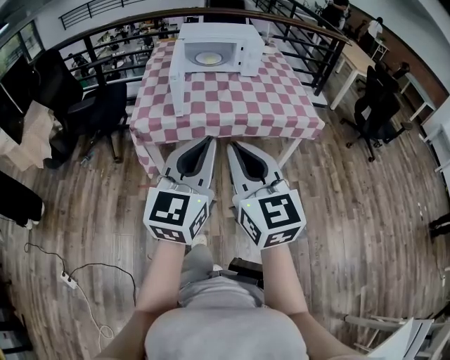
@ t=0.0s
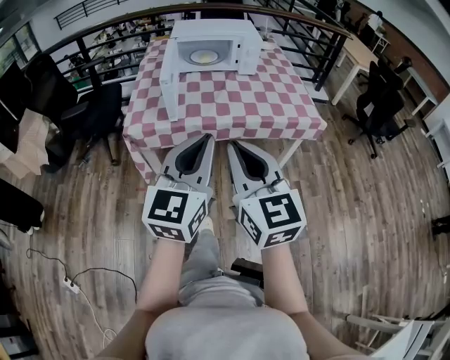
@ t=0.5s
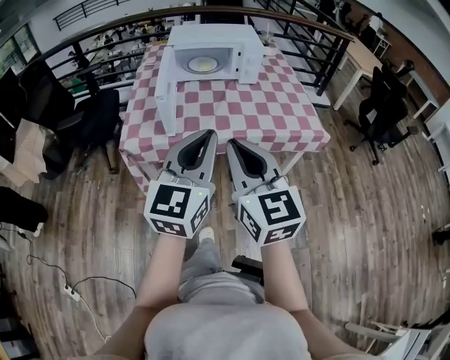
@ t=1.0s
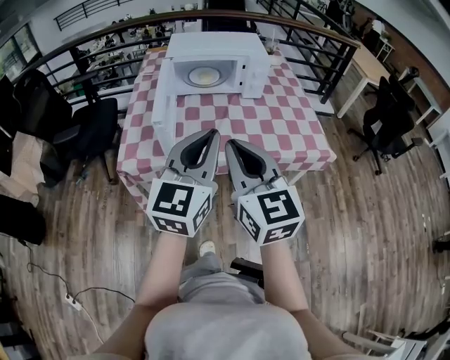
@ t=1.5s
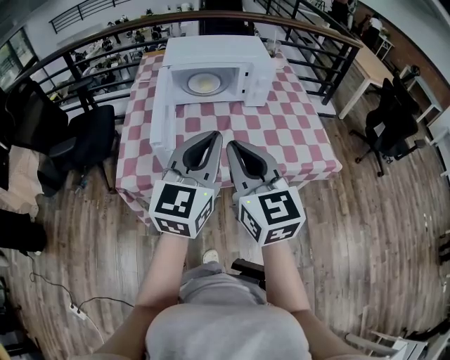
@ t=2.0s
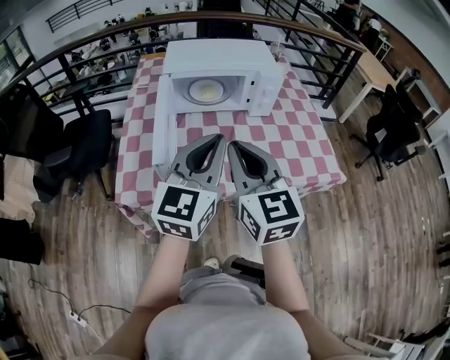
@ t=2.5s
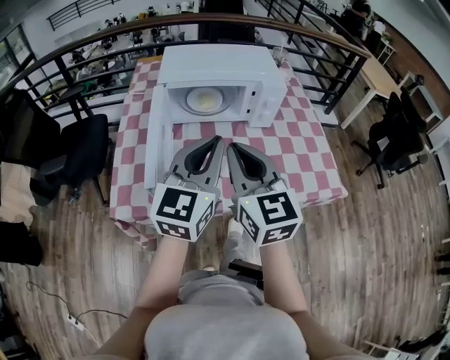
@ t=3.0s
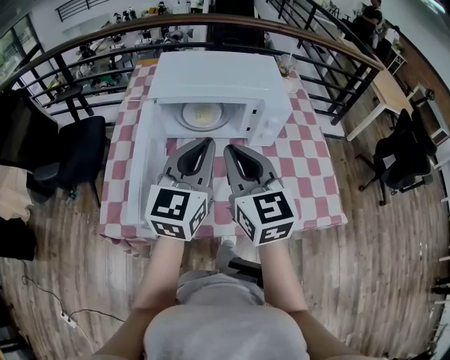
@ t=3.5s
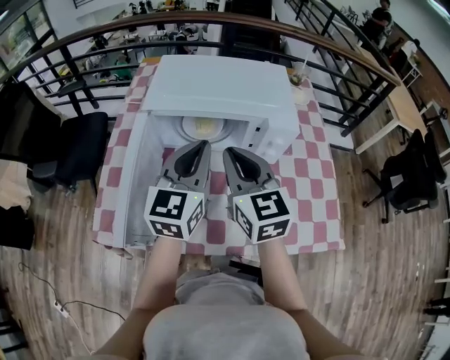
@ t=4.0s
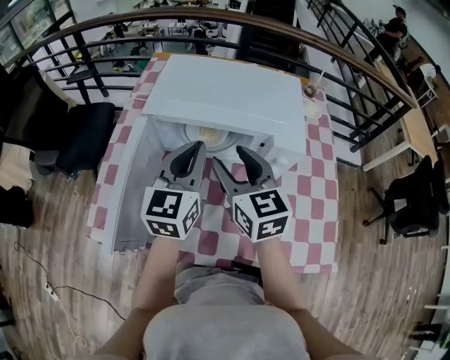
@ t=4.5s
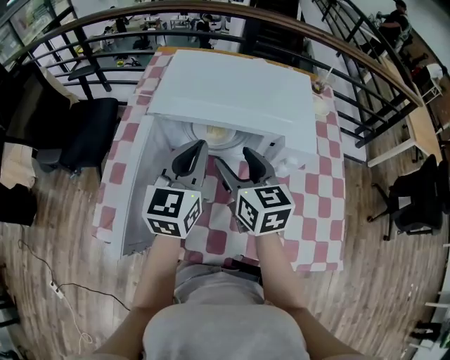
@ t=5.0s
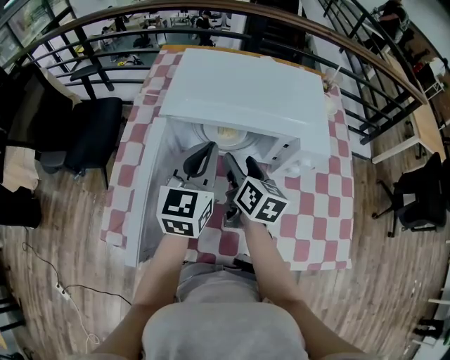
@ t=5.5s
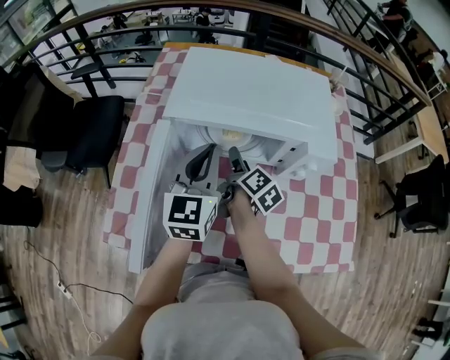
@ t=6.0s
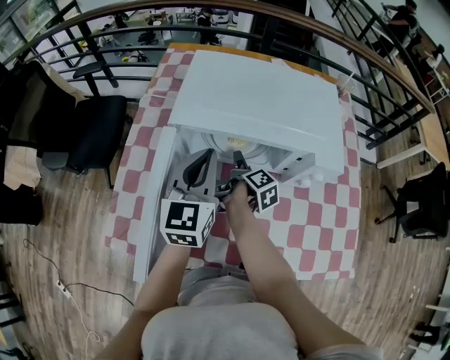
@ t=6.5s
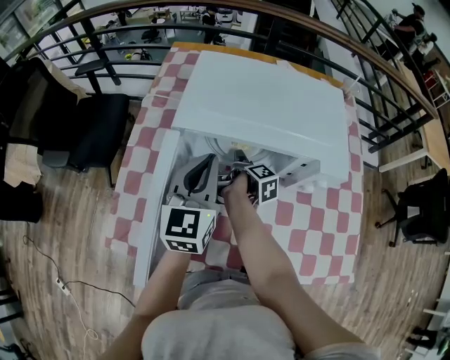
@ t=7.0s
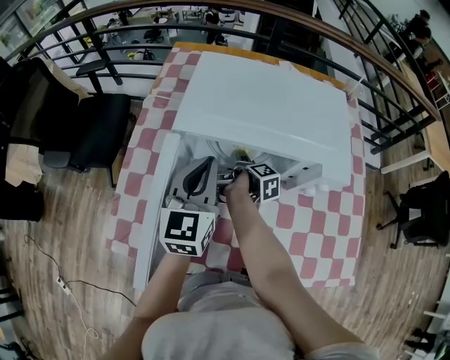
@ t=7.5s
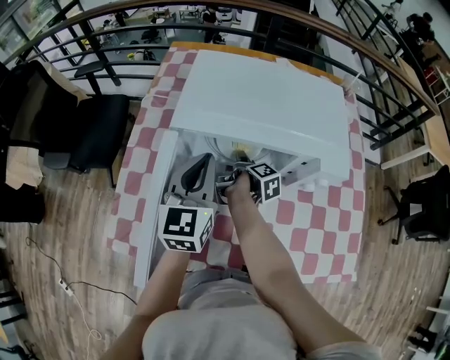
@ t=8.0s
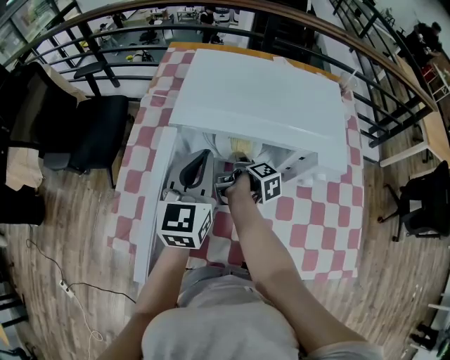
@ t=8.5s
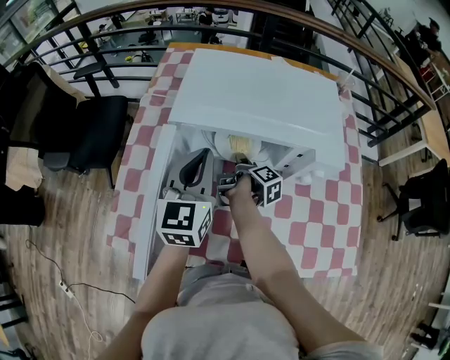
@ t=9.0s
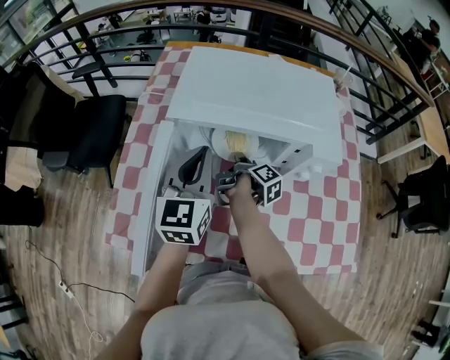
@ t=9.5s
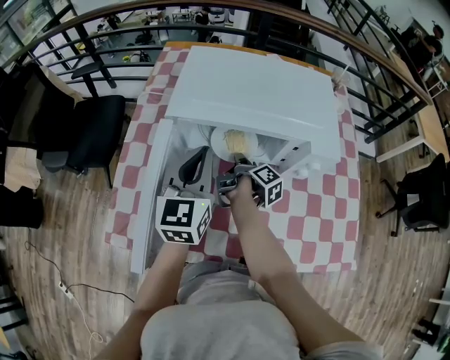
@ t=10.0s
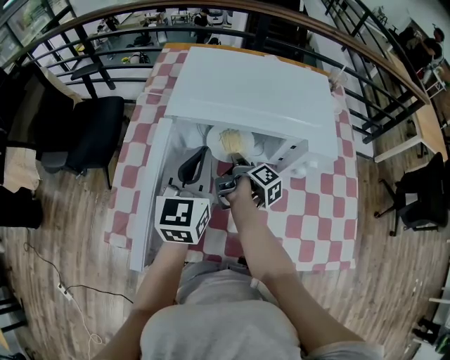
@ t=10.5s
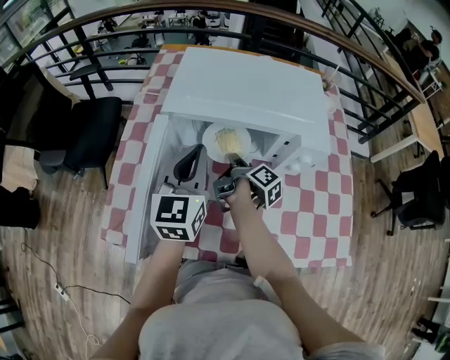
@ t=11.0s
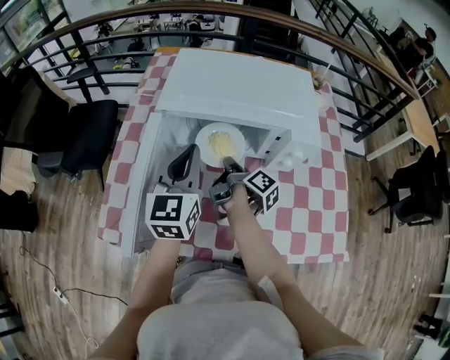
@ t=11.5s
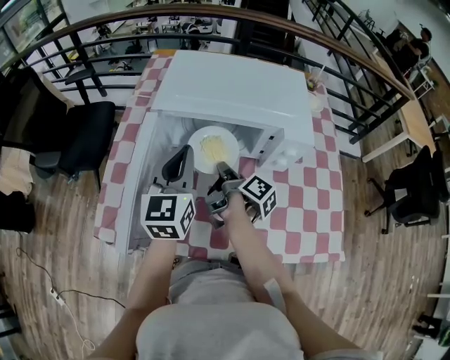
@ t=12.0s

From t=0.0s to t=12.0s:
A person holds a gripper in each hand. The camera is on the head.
From t=0.0s to t=2.0s: Both grippers move forward, approximately 35 cm.
From t=2.0s to t=4.0s: The two grippers go roughly 30 cm forward.
From t=4.0s to t=6.0s: The right gripper is displaced downward and forward by approximately 25 cm, rolls clockwise, seen from behind, by some 70 degrees, and opens up; the left gripper goes about 10 cm forward, to the left and downward.
From t=6.0s to t=8.0s: The right gripper shifts some 10 cm downward, and swivels approximately 30 degrees.
From t=8.0s to t=10.0s: The right gripper closes its fingers.
From t=10.0s to t=12.0s: The right gripper moves backward and upward, roughly 10 cm.

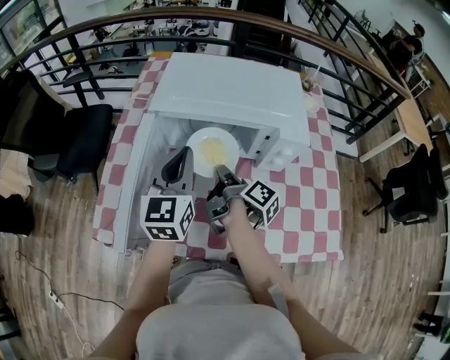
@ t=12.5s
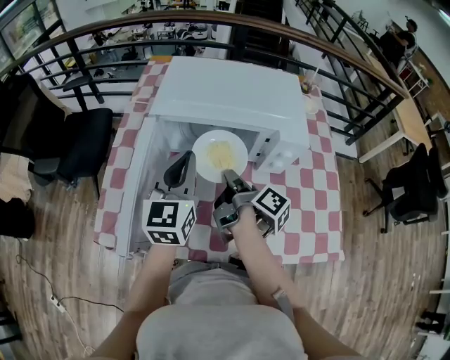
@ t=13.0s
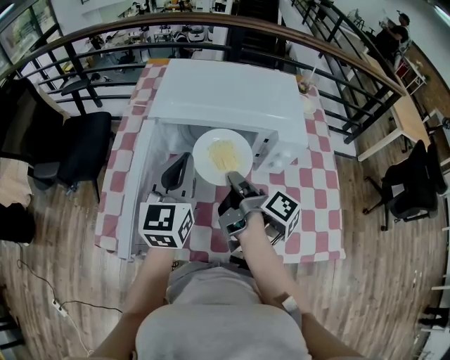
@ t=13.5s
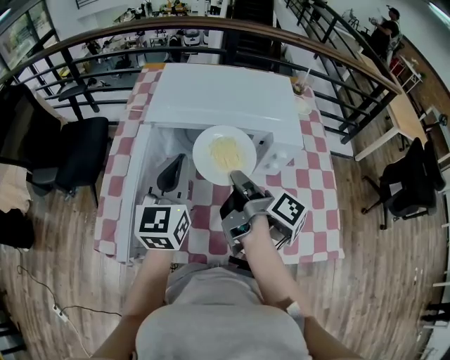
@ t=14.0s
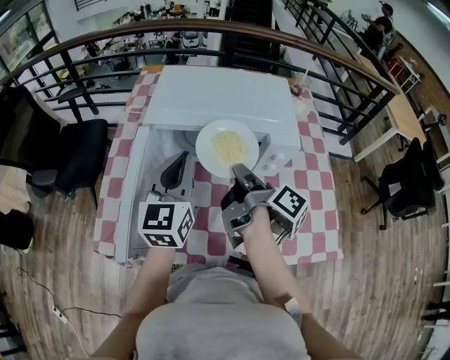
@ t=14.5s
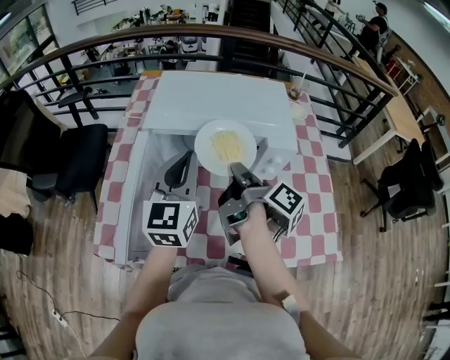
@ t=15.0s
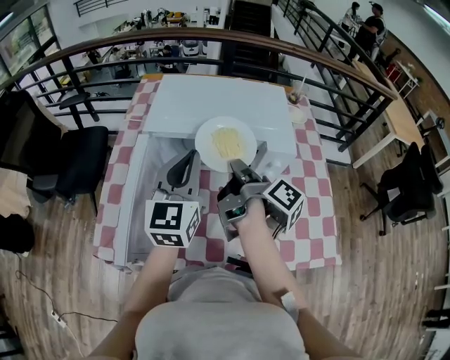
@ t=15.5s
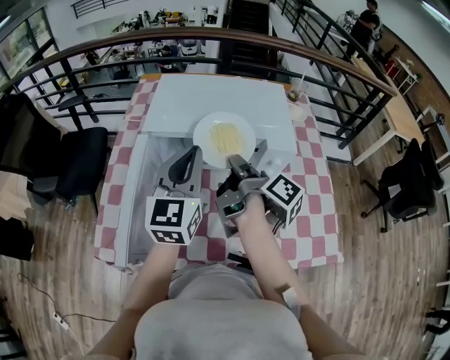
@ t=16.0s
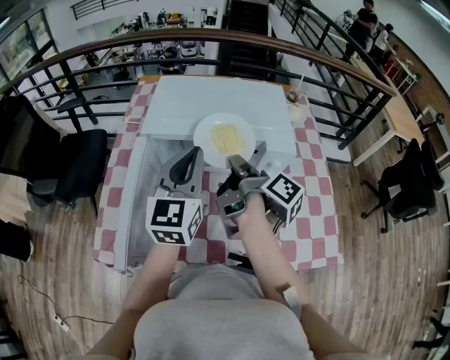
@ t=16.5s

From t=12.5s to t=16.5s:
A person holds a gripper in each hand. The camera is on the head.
From t=12.5s to t=14.5s: The right gripper moves upward, roughly 10 cm.
From t=14.5s to t=16.5s: The grippers stay close to where they were, moving slightly.

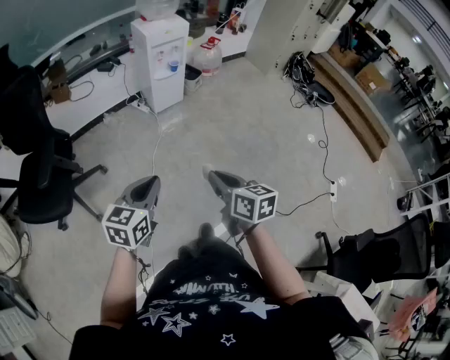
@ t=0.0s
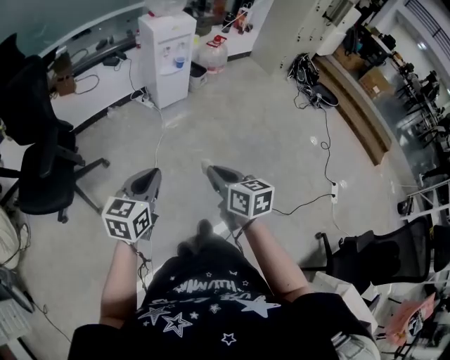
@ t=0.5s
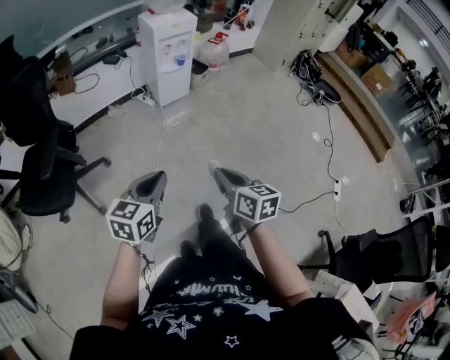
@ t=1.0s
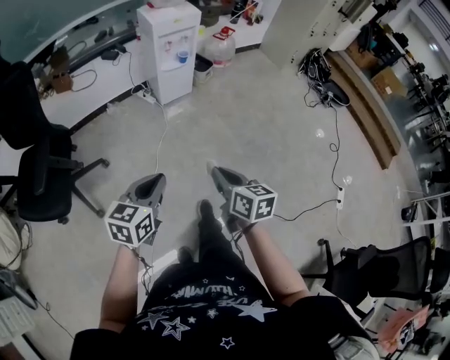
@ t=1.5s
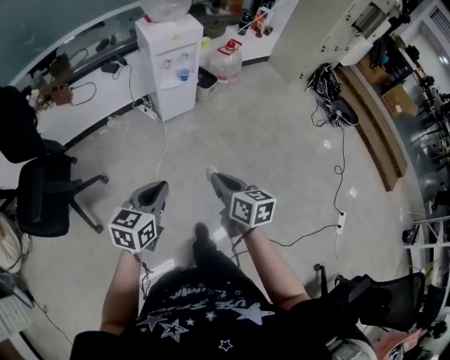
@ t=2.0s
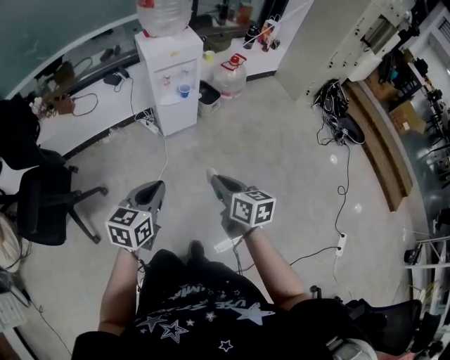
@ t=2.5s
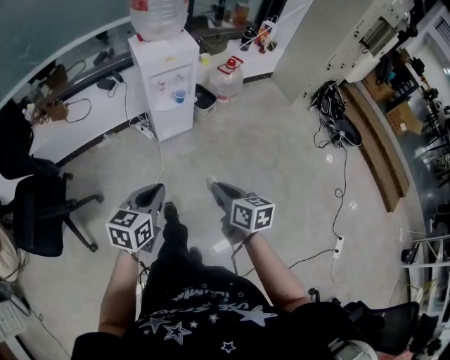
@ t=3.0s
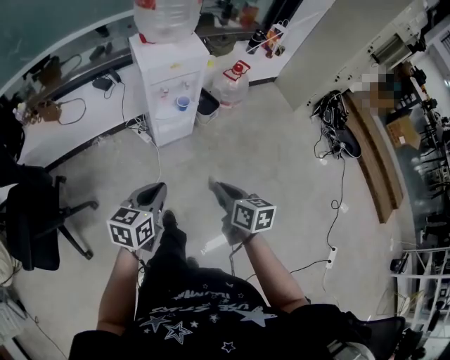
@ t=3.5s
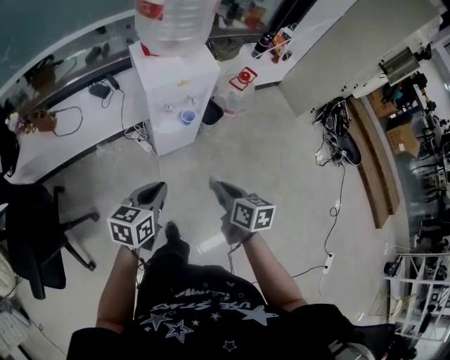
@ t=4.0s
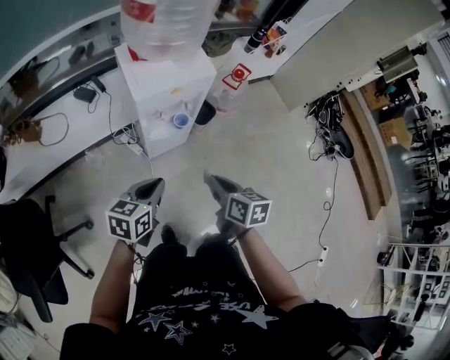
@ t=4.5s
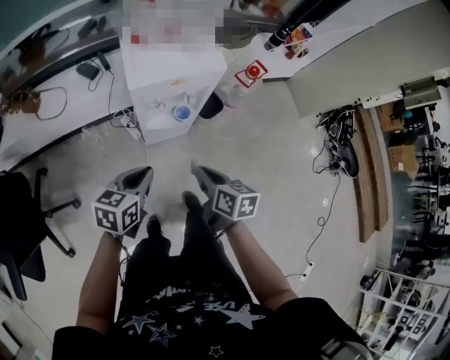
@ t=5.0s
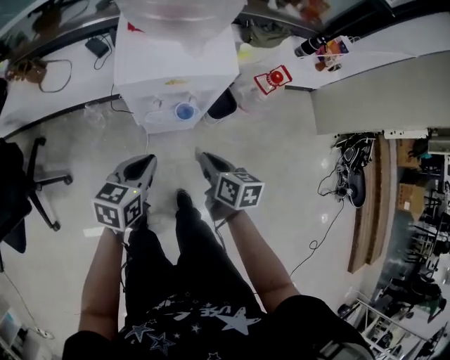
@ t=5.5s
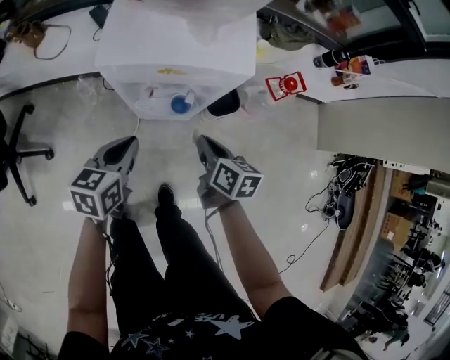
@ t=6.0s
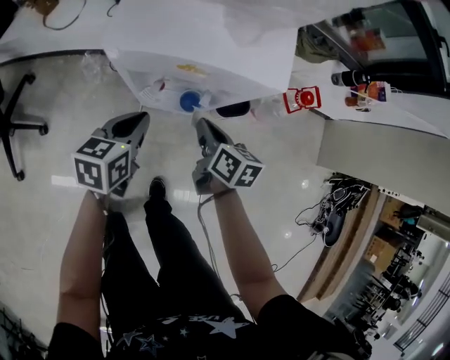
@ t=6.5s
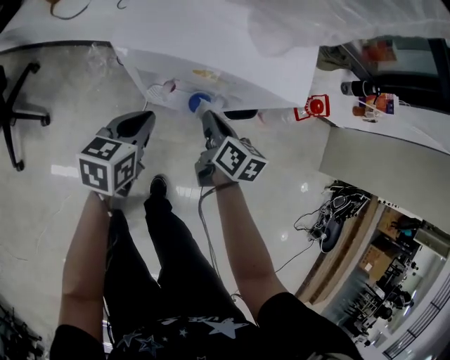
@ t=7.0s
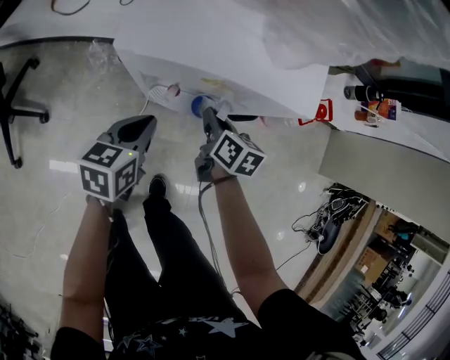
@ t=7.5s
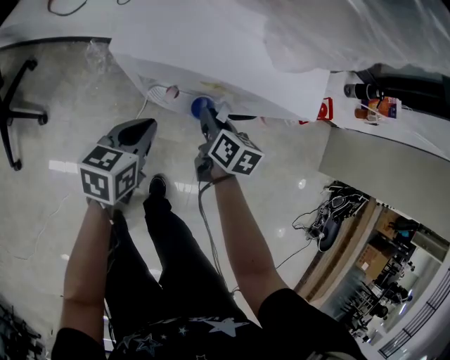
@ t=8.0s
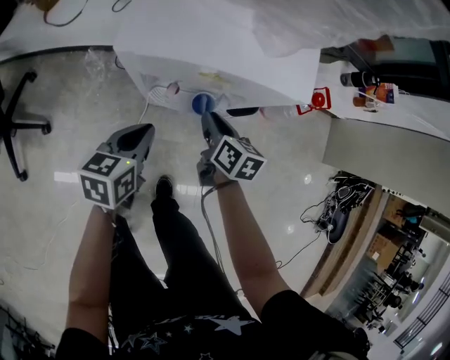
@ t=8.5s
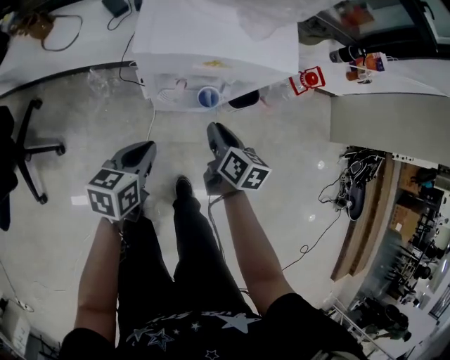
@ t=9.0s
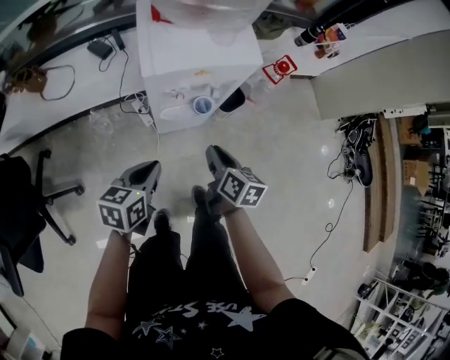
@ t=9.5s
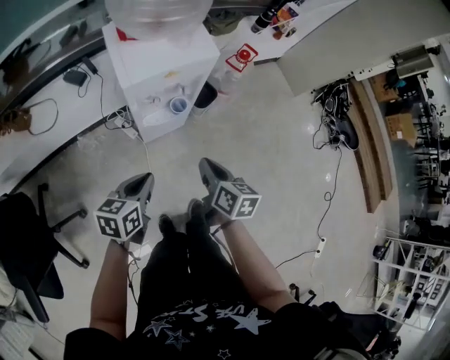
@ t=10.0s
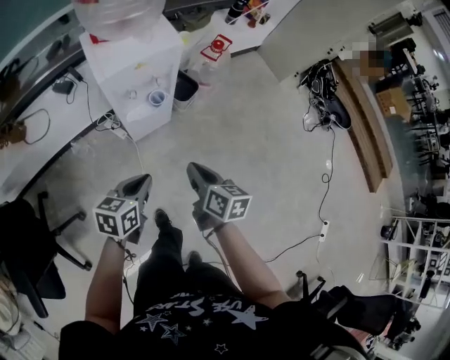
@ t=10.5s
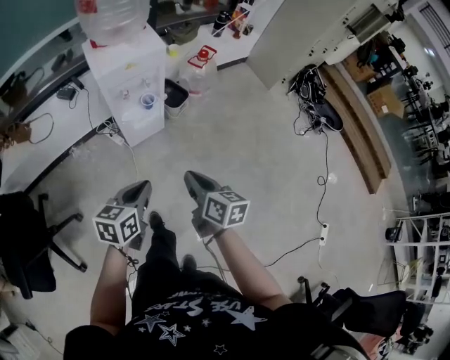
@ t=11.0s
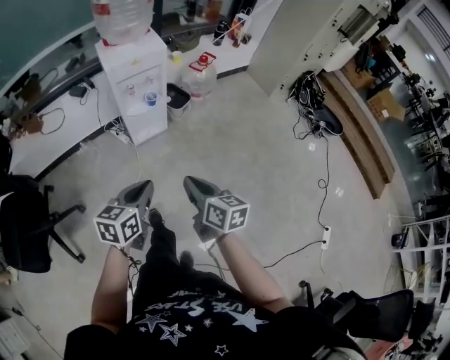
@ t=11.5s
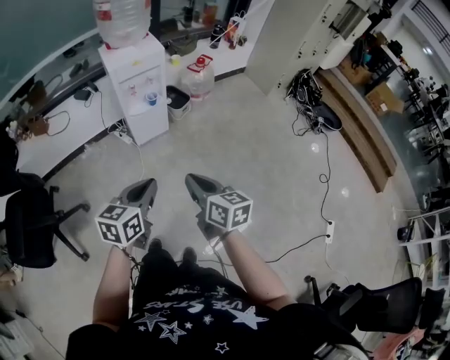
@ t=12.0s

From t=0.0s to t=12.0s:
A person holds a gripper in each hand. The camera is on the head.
From t=0.0s to t=2.0s: Both grippers move forward, approximately 25 cm.
From t=2.0s to t=4.0s: The grippers both shift forward by roughly 40 cm.
From t=4.0s to t=6.0s: The right gripper moves approximately 40 cm, while the left gripper moves approximately 30 cm, and rotates approximately 30 degrees.
From t=6.0s to t=8.0s: The right gripper shifts approximately 15 cm forward, downward and to the left; the left gripper shifts roughly 10 cm downward and forward.
From t=8.0s to t=10.0s: The left gripper shifts by roughly 25 cm, and swivels some 30 degrees. Meanwhile the right gripper changes place by some 35 cm, and turns by some 30 degrees.
From t=10.0s to t=12.0s: The pair of grippers is taken backward and to the right, some 40 cm. The left gripper shifts about 15 cm upward.
